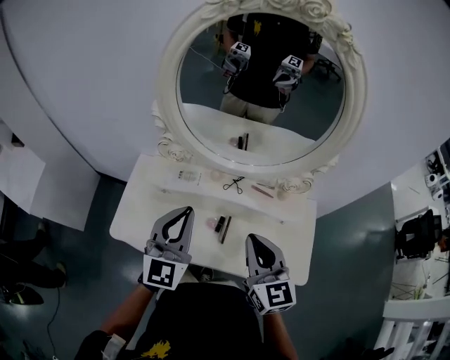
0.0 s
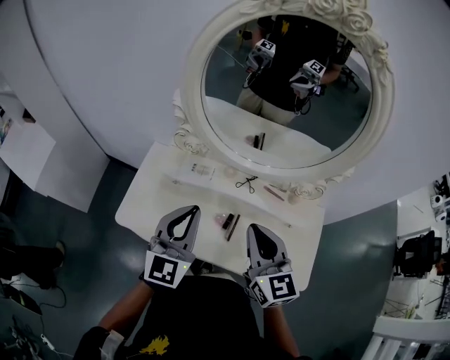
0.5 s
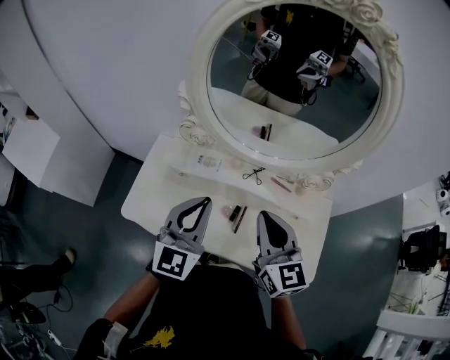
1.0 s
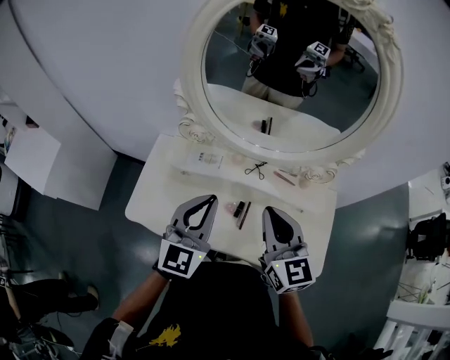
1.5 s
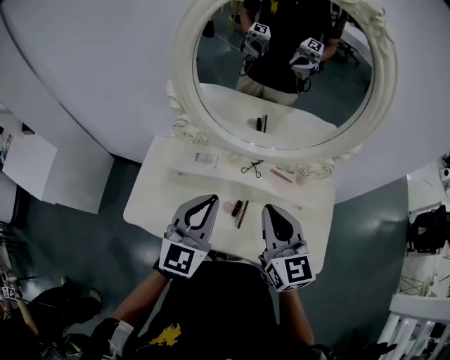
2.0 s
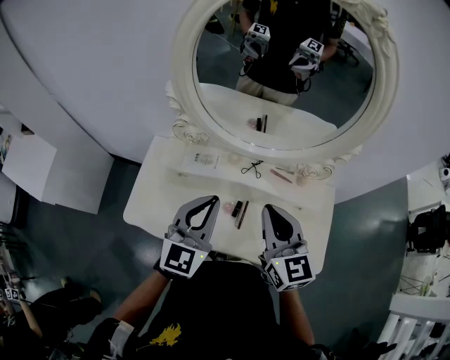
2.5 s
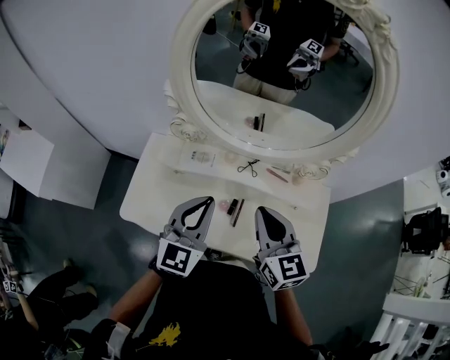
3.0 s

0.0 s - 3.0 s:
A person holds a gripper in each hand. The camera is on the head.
0.0 s - 3.0 s: The grippers move only a little.

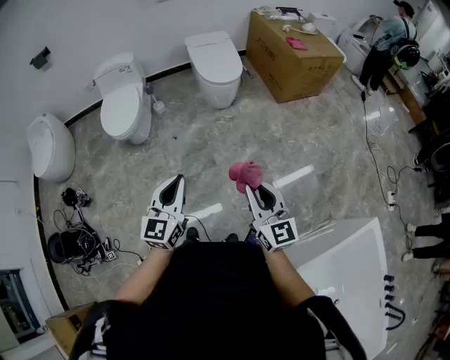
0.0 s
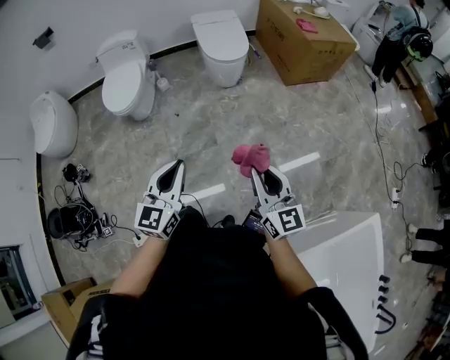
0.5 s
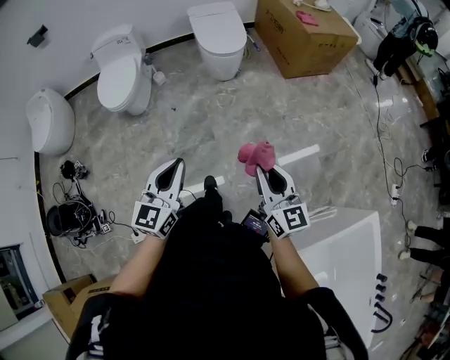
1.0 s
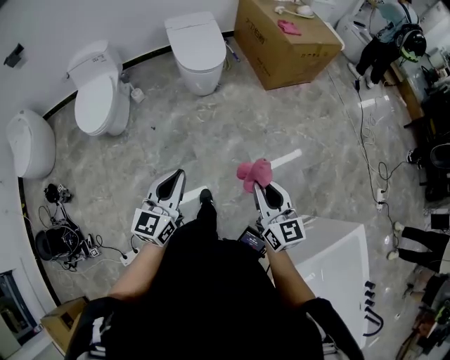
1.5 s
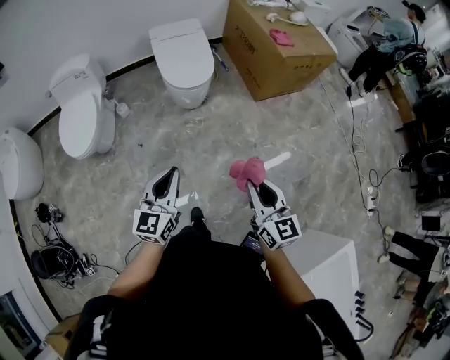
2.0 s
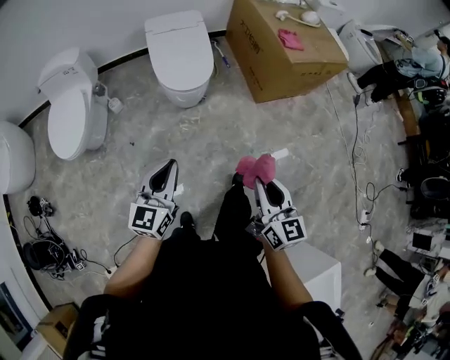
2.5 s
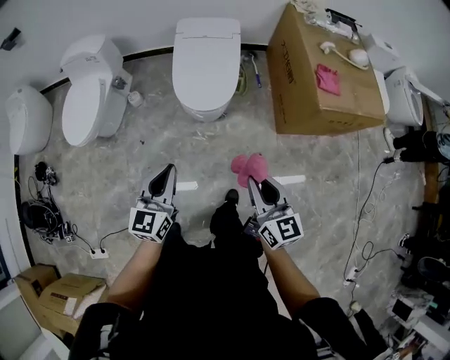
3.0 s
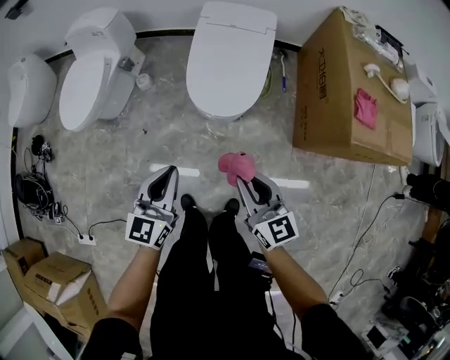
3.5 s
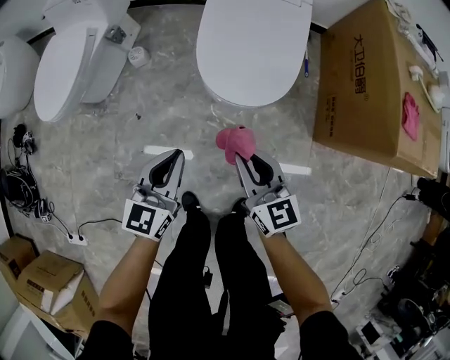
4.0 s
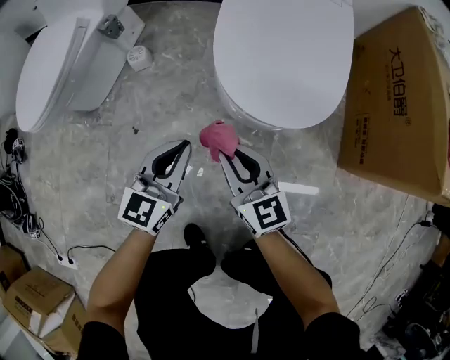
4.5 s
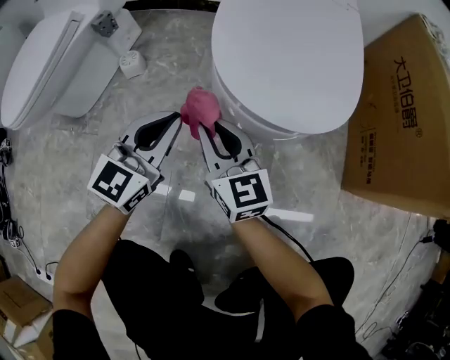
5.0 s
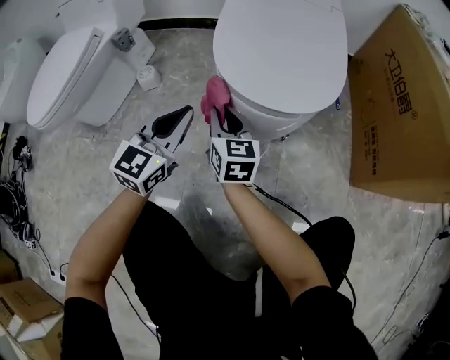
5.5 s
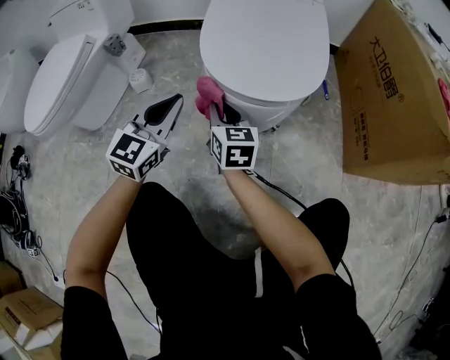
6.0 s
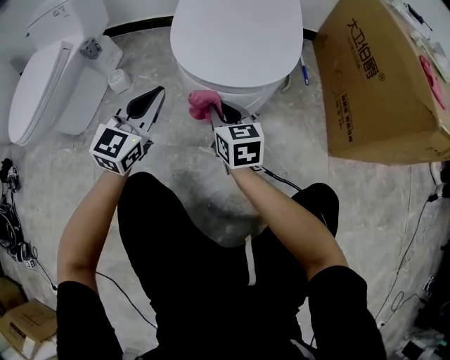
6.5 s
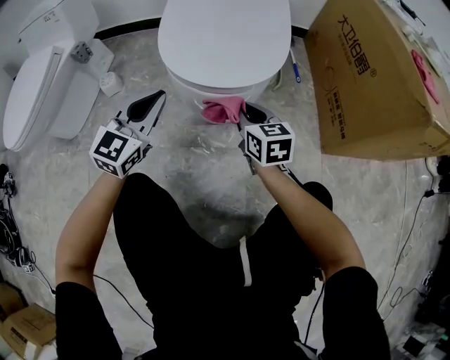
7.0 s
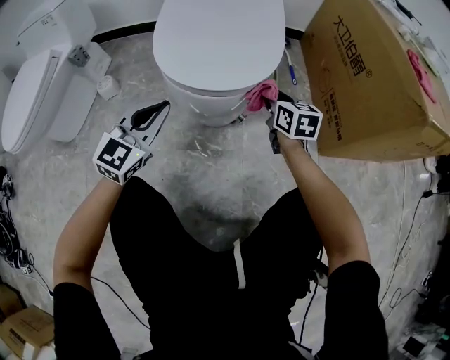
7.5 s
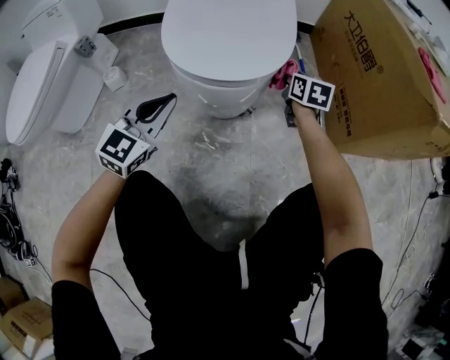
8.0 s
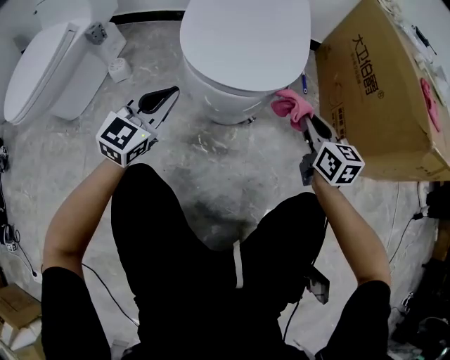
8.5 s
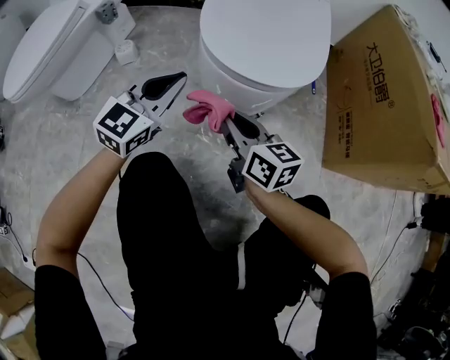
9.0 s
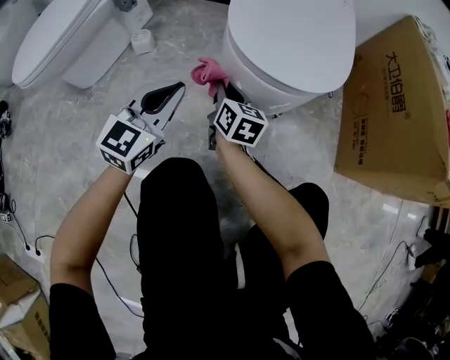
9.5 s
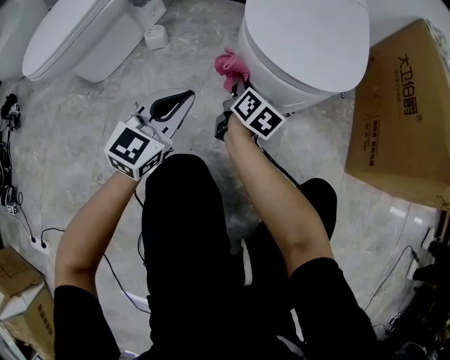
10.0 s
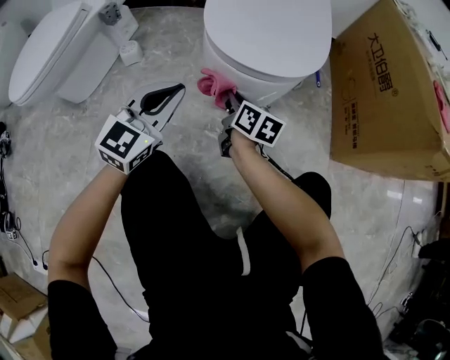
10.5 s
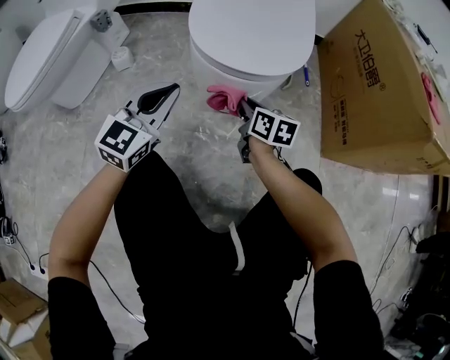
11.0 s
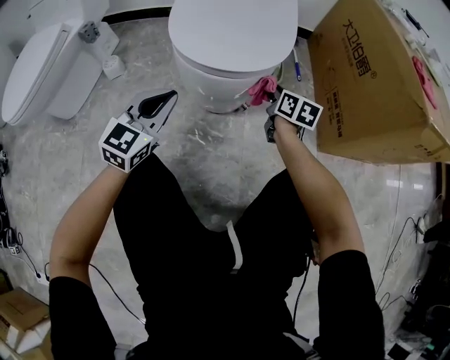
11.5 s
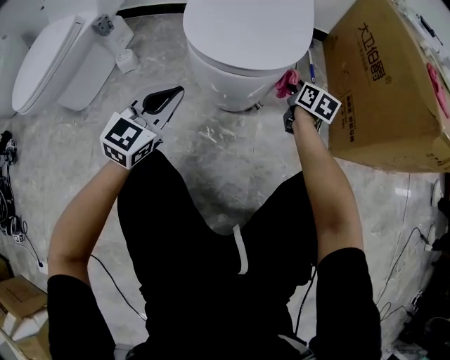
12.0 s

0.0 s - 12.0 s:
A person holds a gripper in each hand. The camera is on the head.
0.0 s - 2.0 s: The two grippers go some 25 cm forward and to the right.
2.0 s - 4.0 s: The left gripper ends up about 50 cm from where it was, and changes its angle by about 20 degrees. The right gripper changes place by some 60 cm, and turns by approximately 40 degrees.
4.0 s - 6.0 s: The grippers both shift downward and forward by about 25 cm. The left gripper changes its angle by approximately 20 degrees.
6.0 s - 8.0 s: The left gripper goes roughly 5 cm to the right. Meanwhile the right gripper is displaced to the right and forward by approximately 30 cm.
8.0 s - 10.0 s: The left gripper shifts roughly 10 cm to the left and backward. The right gripper shifts approximately 30 cm to the left, and rotates about 30 degrees.
10.0 s - 12.0 s: The left gripper shifts about 10 cm to the right. Meanwhile the right gripper shifts approximately 30 cm to the right.

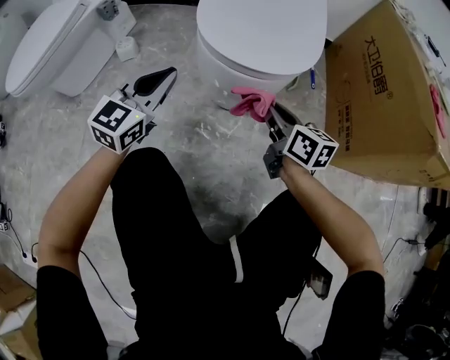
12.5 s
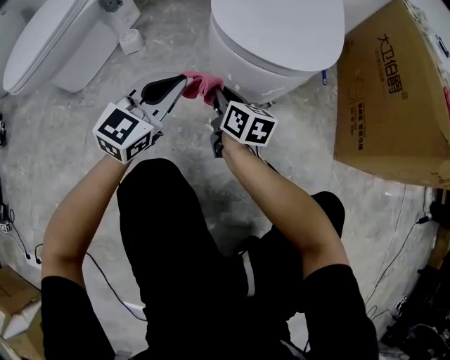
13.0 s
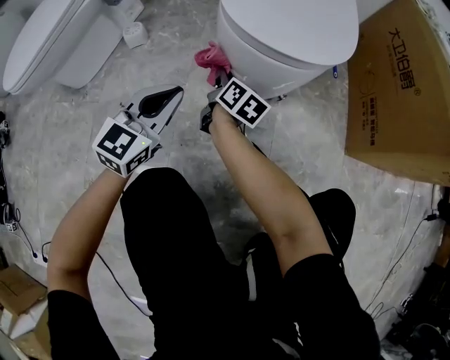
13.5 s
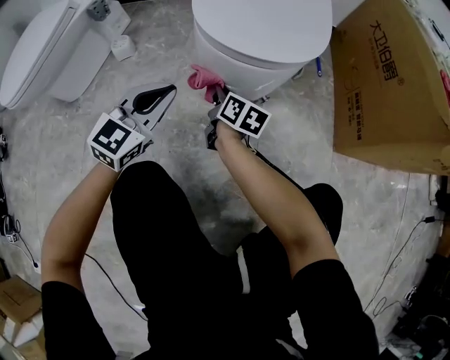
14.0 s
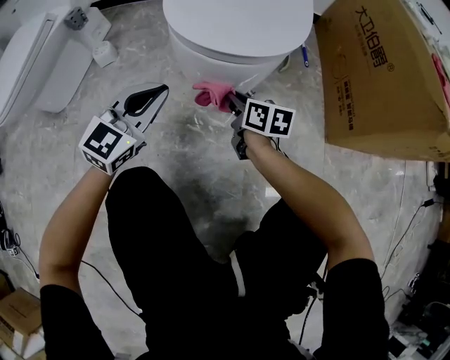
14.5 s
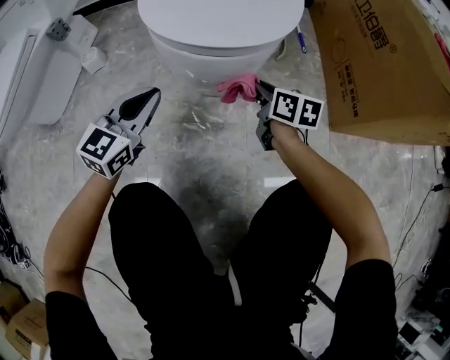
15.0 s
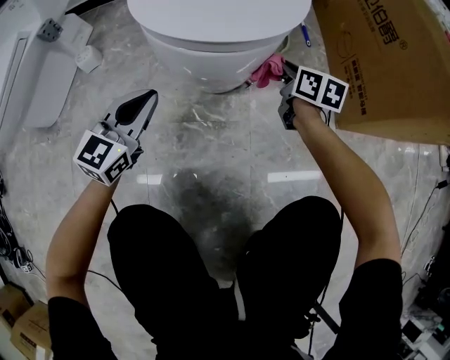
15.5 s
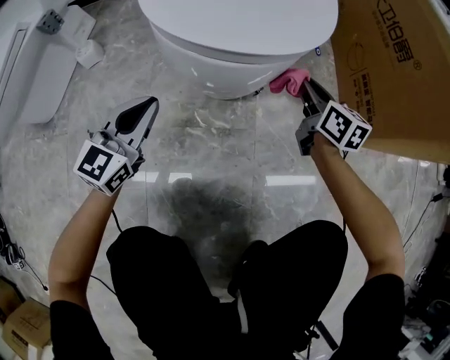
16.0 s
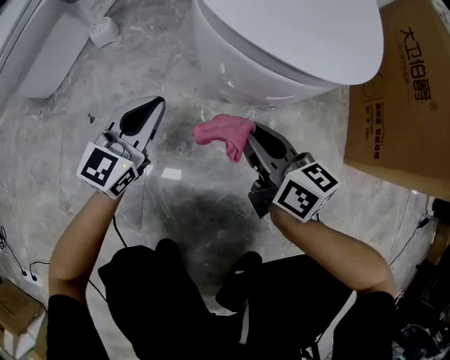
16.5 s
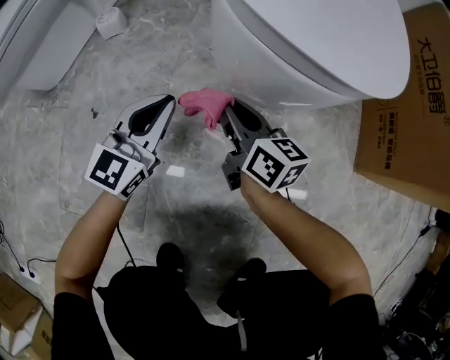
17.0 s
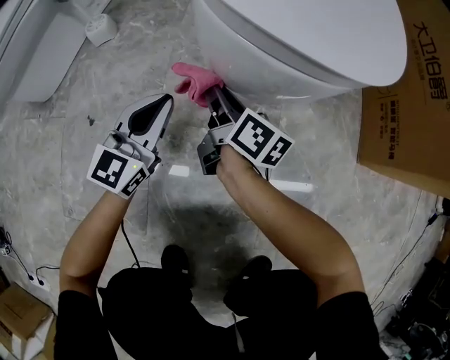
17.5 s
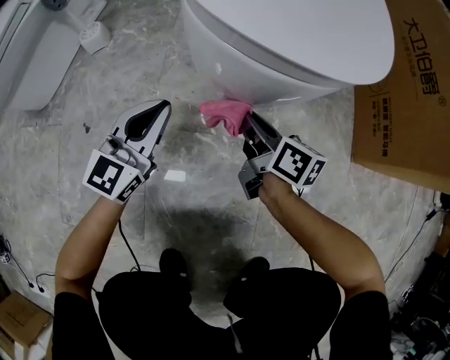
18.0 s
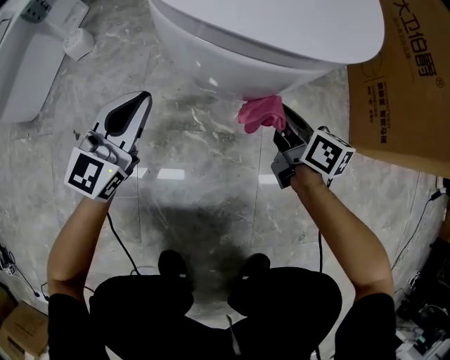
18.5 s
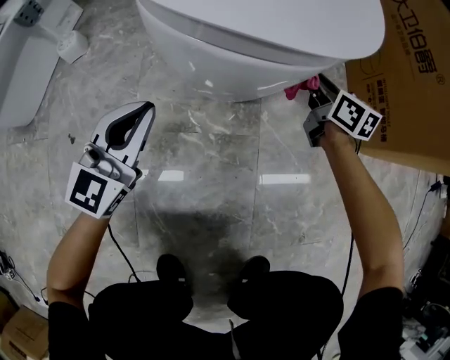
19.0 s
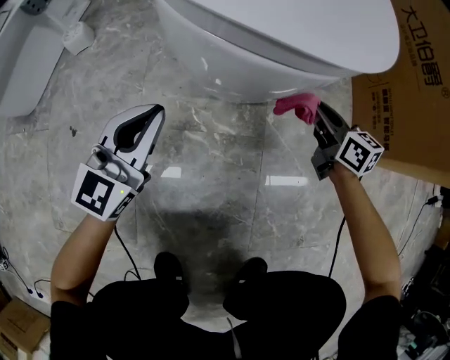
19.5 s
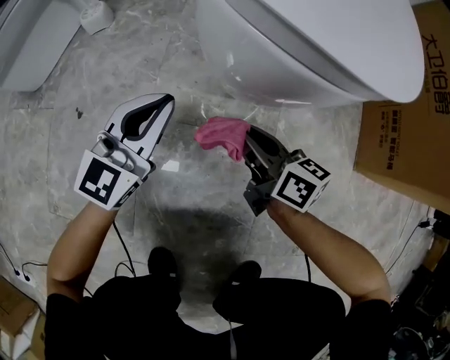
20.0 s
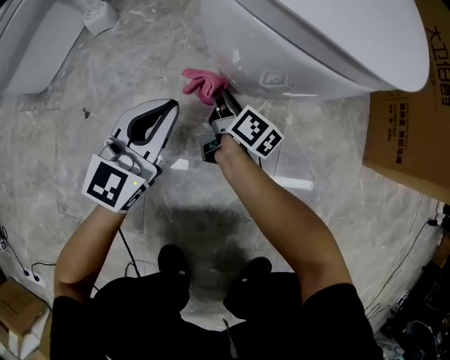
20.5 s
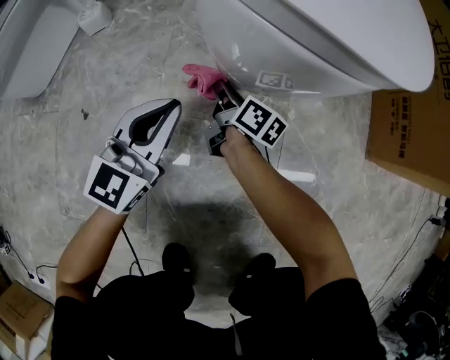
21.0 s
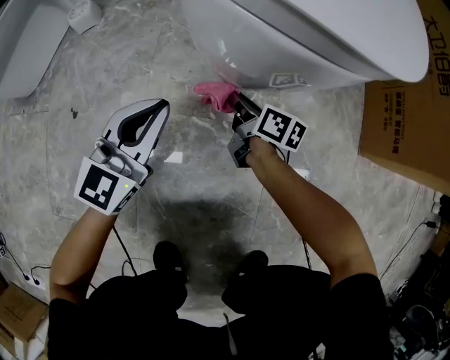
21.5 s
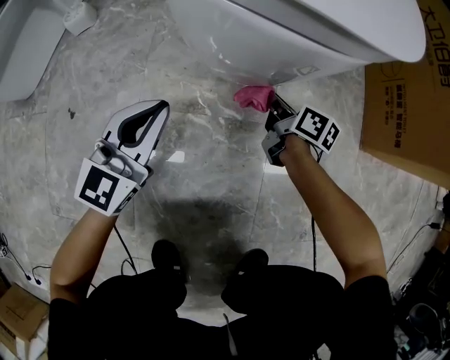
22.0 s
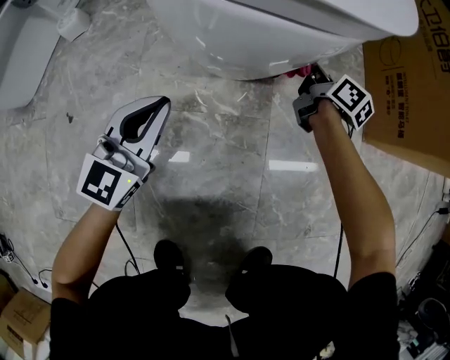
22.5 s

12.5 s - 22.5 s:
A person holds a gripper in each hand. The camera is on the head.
12.5 s - 14.5 s: The left gripper shifts by about 5 cm. Meanwhile the right gripper is displaced downward by approximately 10 cm, and travels to the left and back again, about 15 cm each way.
14.5 s - 16.5 s: The right gripper travels backward by about 5 cm, and moves some 15 cm to the right and comes back. The left gripper is displaced downward and to the left by approximately 10 cm.
16.5 s - 18.5 s: The right gripper travels to the right, downward and forward by about 15 cm.
18.5 s - 20.5 s: The right gripper travels to the left and downward by some 20 cm, and changes its angle by approximately 20 degrees.
20.5 s - 22.5 s: The right gripper shifts roughly 25 cm to the right. Meanwhile the left gripper shifts by some 5 cm.

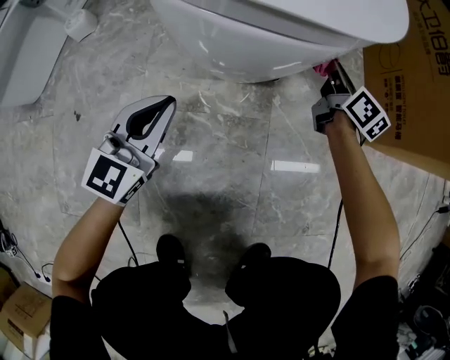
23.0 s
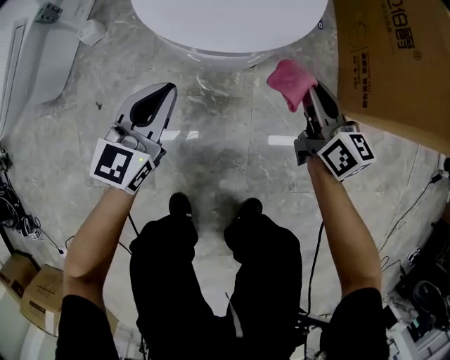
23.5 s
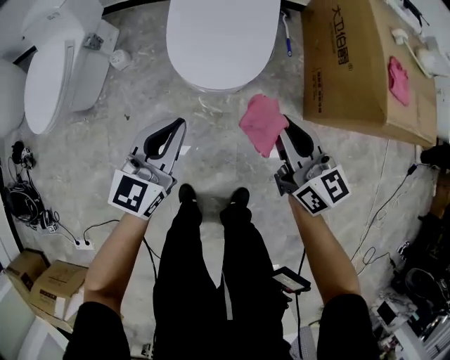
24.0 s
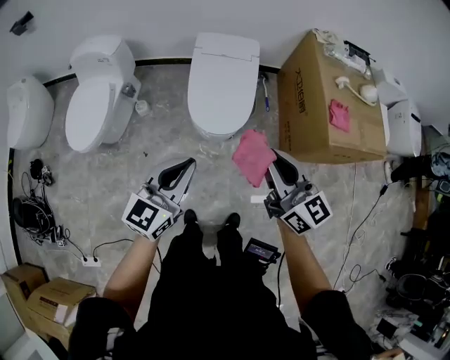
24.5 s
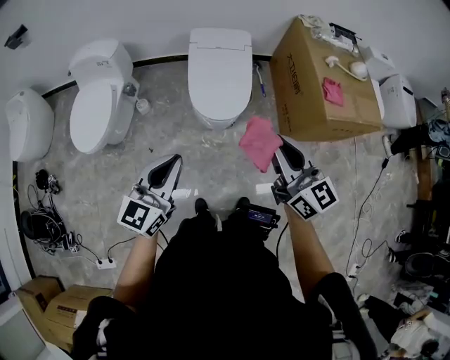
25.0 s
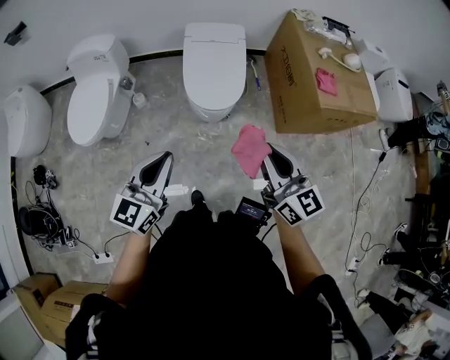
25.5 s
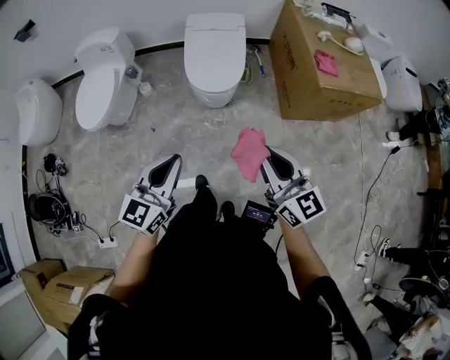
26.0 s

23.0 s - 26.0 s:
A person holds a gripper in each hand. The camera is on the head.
23.0 s - 24.5 s: The two grippers go about 70 cm upward. The right gripper turns by about 30 degrees.
24.5 s - 26.0 s: The two grippers go approximately 20 cm backward.
